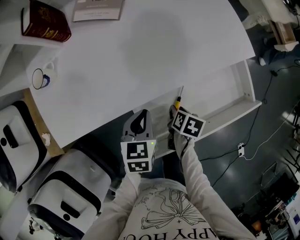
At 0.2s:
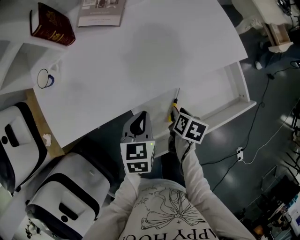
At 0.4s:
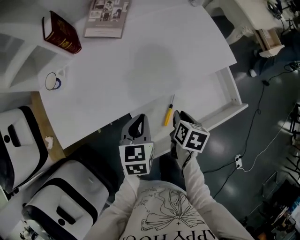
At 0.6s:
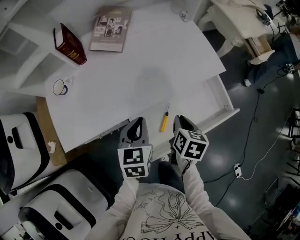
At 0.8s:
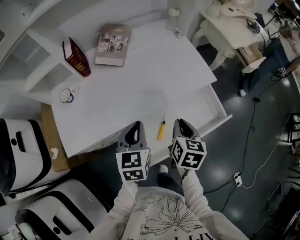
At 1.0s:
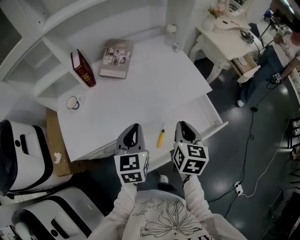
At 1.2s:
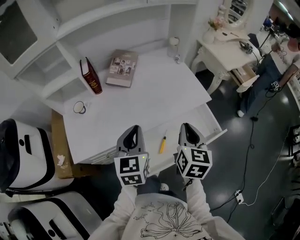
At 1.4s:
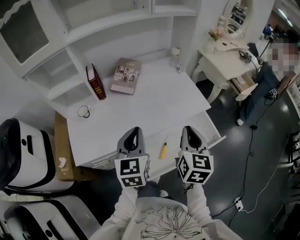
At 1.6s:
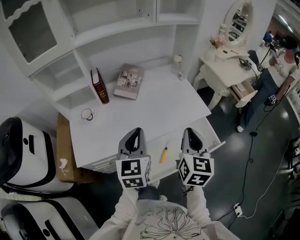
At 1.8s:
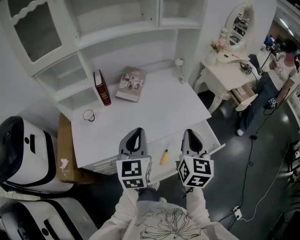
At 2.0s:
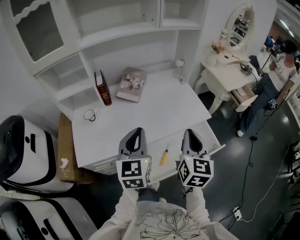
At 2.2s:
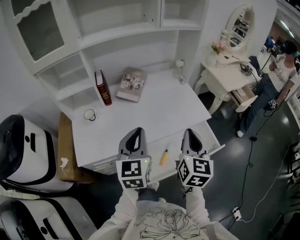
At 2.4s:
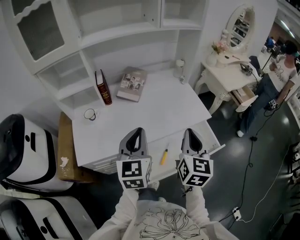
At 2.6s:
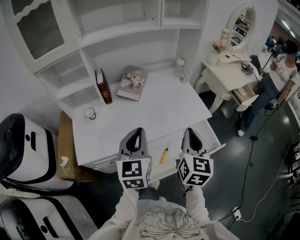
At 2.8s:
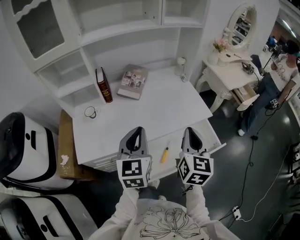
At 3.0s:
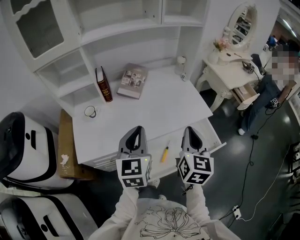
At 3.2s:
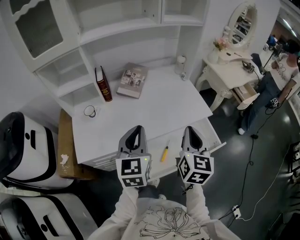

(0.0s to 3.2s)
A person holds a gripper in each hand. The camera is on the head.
0.0s - 1.6s: The grippers both shift upward by approximately 40 cm. The right gripper tilts its fingers approximately 50 degrees upward, and closes its fingers, while the left gripper points its fingers approximately 40 degrees further upward.
1.6s - 3.2s: The grippers move only a little.

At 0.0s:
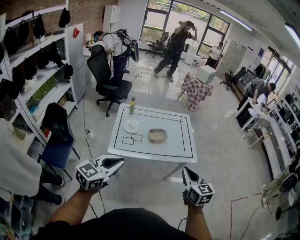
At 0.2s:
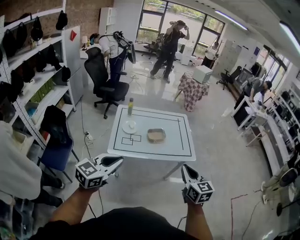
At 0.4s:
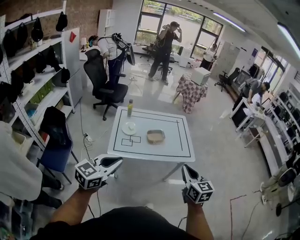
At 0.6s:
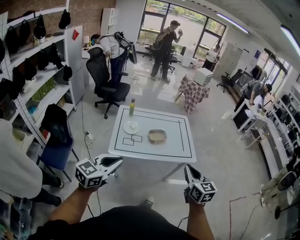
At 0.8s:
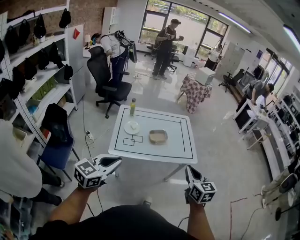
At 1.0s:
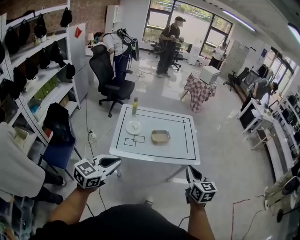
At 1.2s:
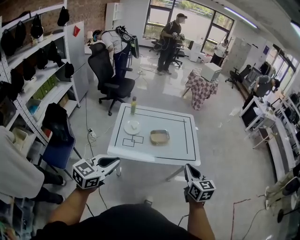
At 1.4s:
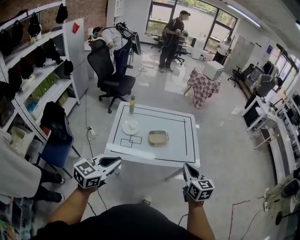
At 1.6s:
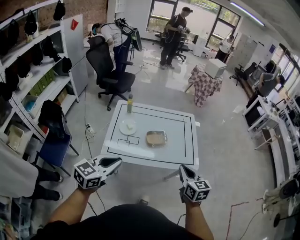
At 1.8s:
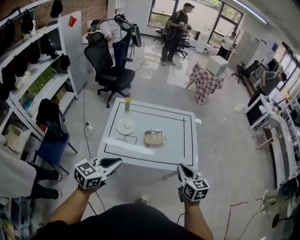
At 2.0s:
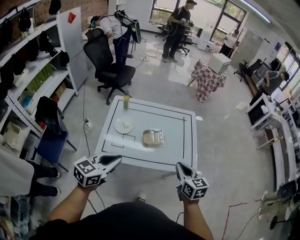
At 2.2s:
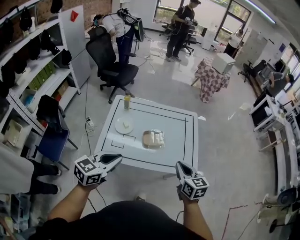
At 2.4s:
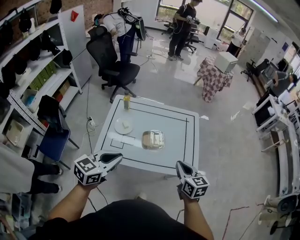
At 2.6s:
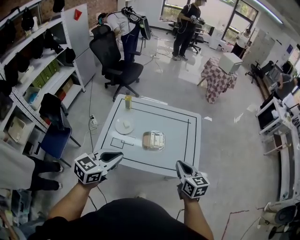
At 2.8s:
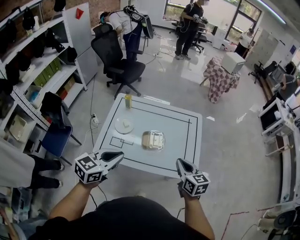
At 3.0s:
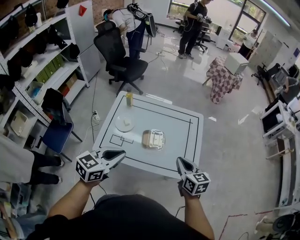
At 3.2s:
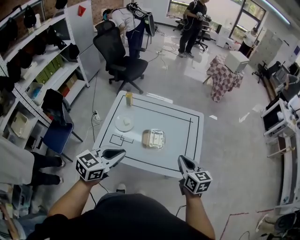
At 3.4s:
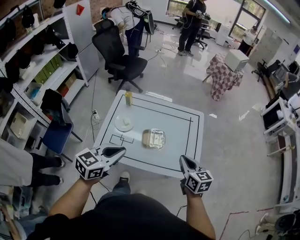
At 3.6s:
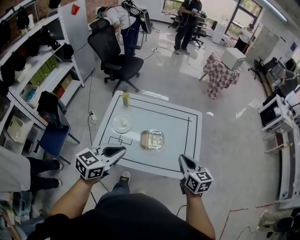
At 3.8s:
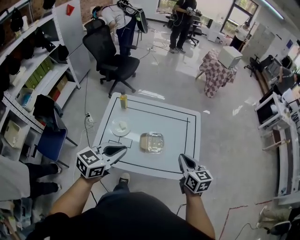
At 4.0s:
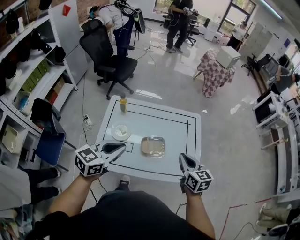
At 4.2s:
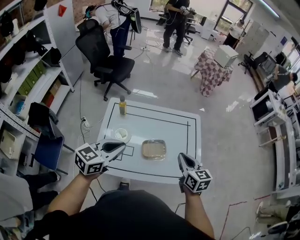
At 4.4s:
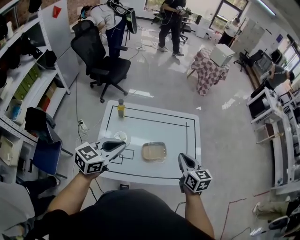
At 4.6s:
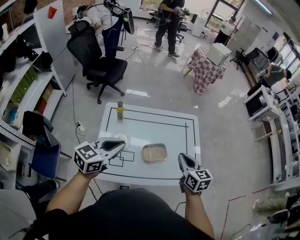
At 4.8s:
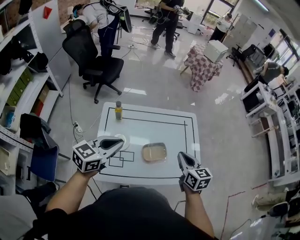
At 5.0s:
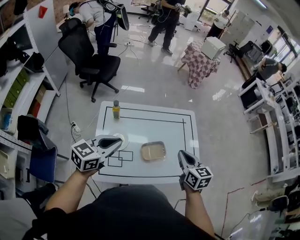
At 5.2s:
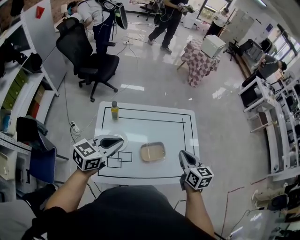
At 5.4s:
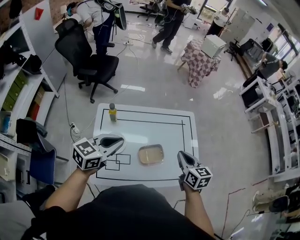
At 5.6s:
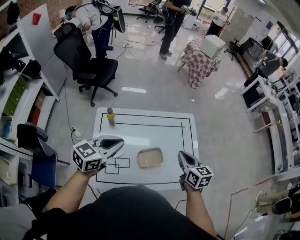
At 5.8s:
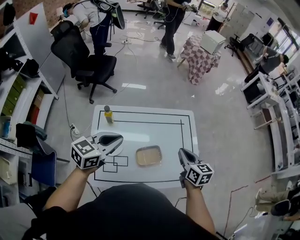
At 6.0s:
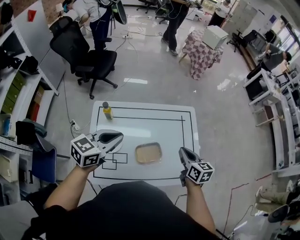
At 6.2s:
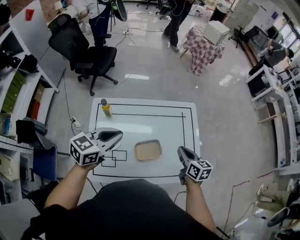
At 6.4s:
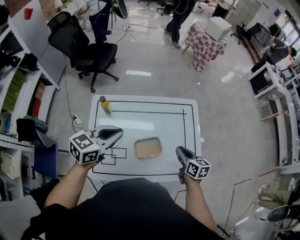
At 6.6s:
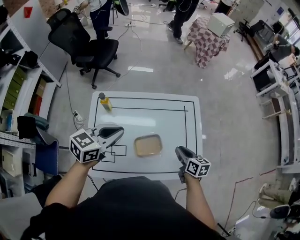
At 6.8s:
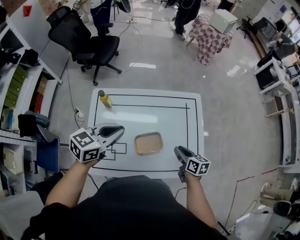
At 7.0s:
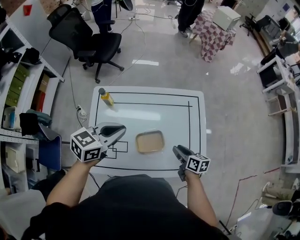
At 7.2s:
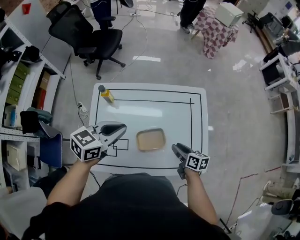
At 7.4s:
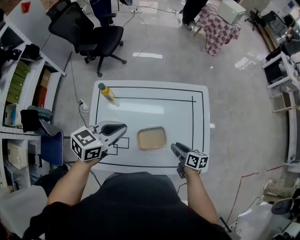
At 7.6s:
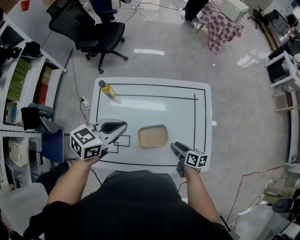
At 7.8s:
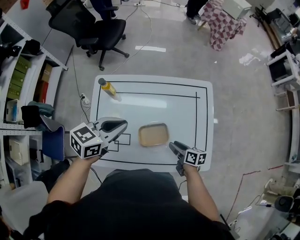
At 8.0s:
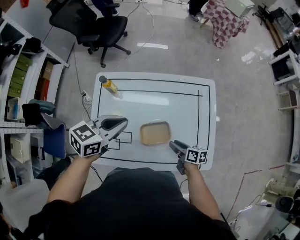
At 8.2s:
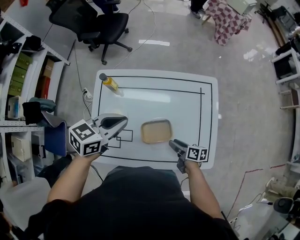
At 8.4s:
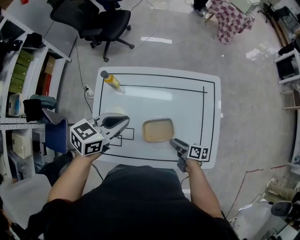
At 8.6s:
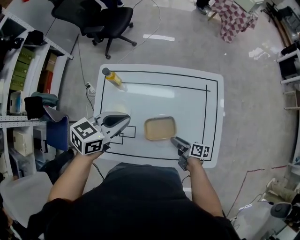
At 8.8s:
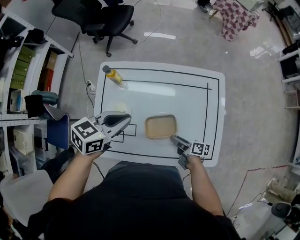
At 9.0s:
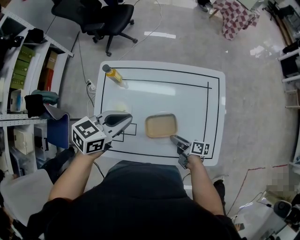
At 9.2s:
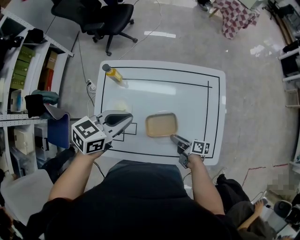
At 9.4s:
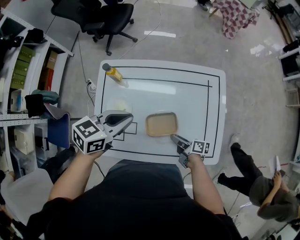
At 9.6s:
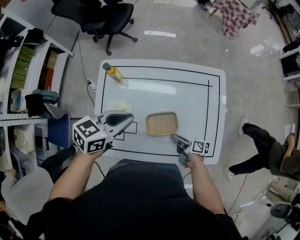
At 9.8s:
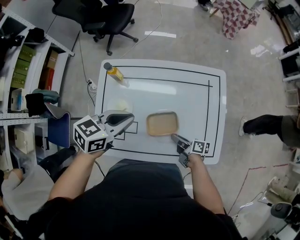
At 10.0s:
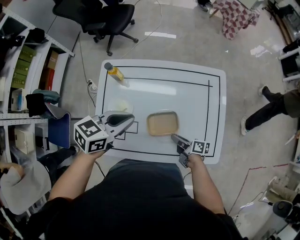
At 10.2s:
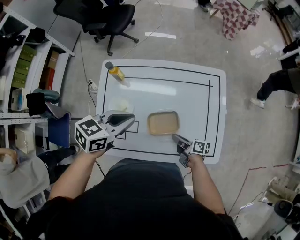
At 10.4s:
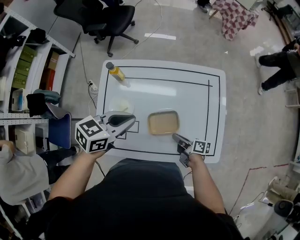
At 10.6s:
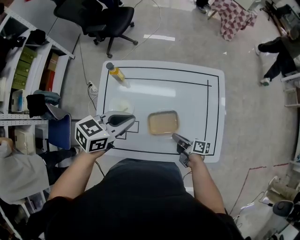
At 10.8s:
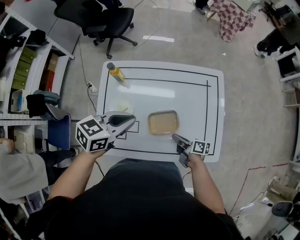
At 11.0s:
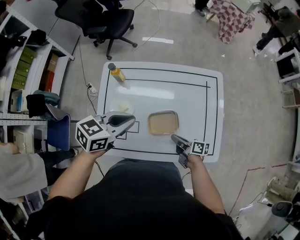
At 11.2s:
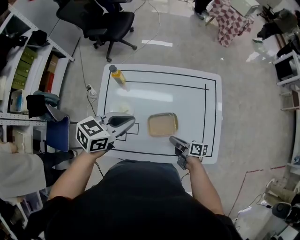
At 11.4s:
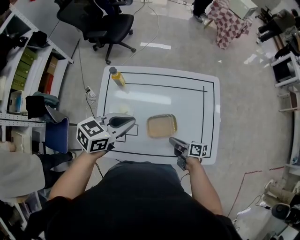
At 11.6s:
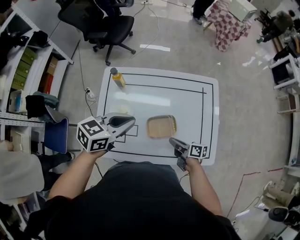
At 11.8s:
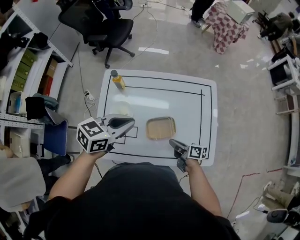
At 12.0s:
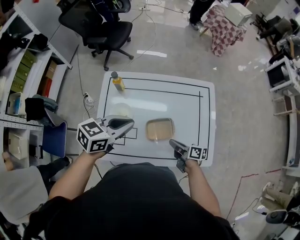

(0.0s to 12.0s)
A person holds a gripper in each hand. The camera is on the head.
0.0s - 1.6s: The left gripper travels forward by some 15 cm, while the right gripper heads forward and downward, covering approximately 20 cm.
1.6s - 3.0s: The left gripper heads forward and to the right, covering approximately 20 cm. The right gripper moves forward, roughly 20 cm.
3.0s - 4.4s: The grippers both shift forward and to the left by some 20 cm.
4.4s - 6.0s: The right gripper heads forward and downward, covering approximately 15 cm; the left gripper shifts roughly 15 cm forward.
6.0s - 7.6s: The left gripper heads downward and to the right, covering about 10 cm, while the right gripper shifts approximately 20 cm downward, changes its angle by roughly 30 degrees, and opens its fingers.
7.6s - 9.0s: The right gripper heads downward, covering some 5 cm, and turns by about 20 degrees.
9.0s - 10.4s: The right gripper closes up.
10.4s - 12.0s: The grippers both shift upward by about 5 cm.

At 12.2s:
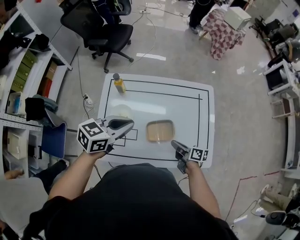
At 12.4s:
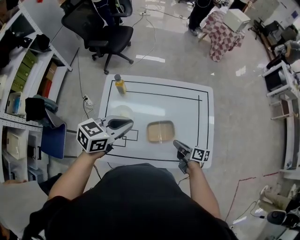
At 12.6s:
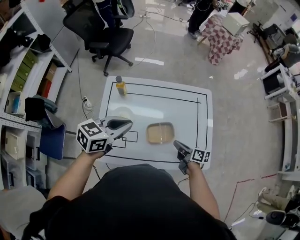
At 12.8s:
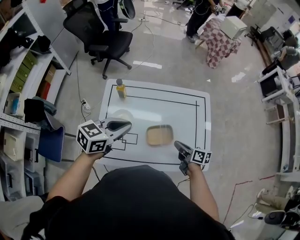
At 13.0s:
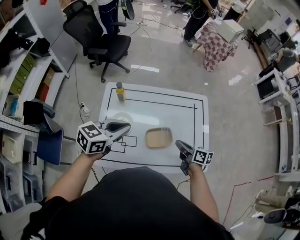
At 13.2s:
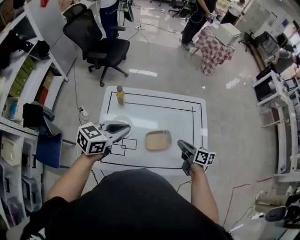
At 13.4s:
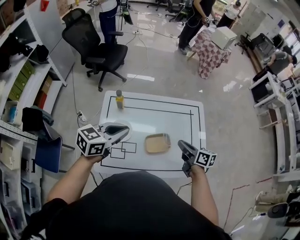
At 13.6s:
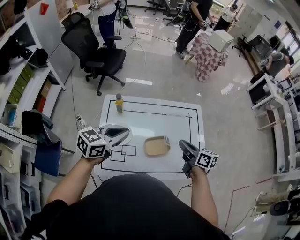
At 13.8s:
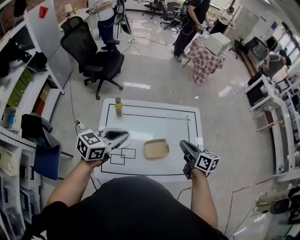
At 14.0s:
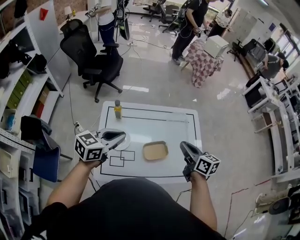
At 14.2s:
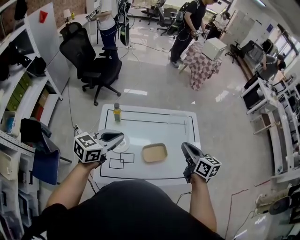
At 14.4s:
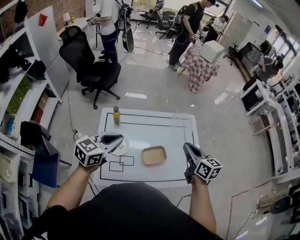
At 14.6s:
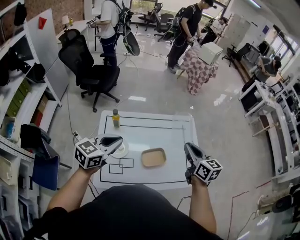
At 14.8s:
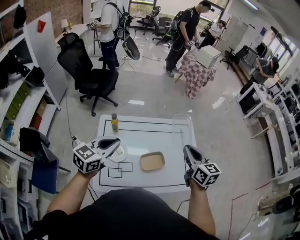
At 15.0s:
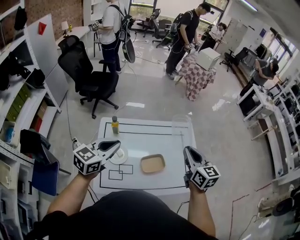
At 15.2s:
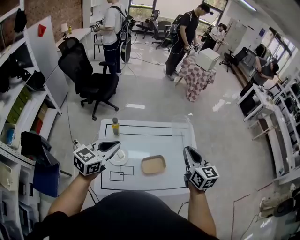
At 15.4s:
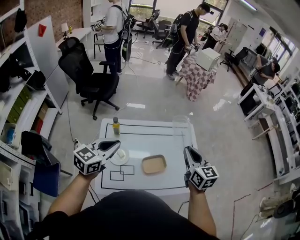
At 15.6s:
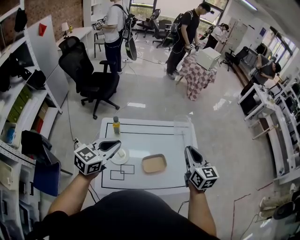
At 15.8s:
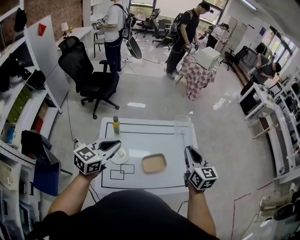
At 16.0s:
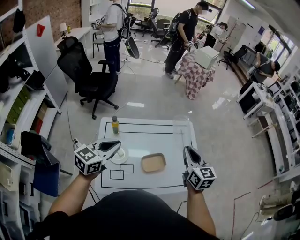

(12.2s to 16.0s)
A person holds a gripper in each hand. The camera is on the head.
12.2s - 13.4s: The right gripper is displaced upward by some 15 cm. Meanwhile the left gripper travels to the left by some 5 cm.
13.4s - 14.8s: The right gripper travels upward by roughly 15 cm, and swivels roughly 40 degrees. The left gripper goes roughly 5 cm upward.
14.8s - 16.0s: The grippers stay close to where they were, moving slightly.

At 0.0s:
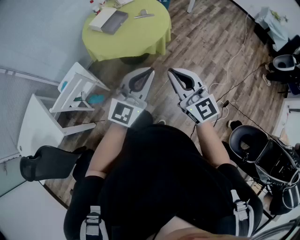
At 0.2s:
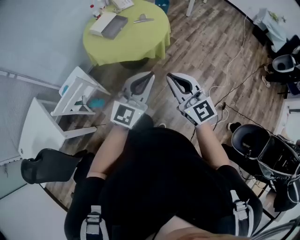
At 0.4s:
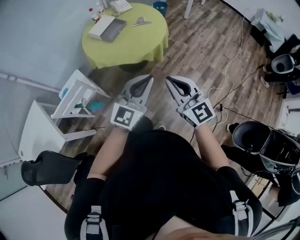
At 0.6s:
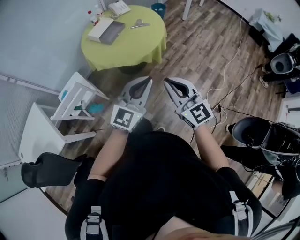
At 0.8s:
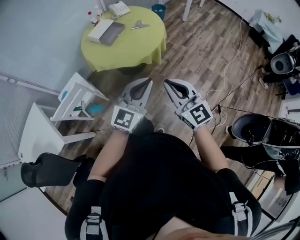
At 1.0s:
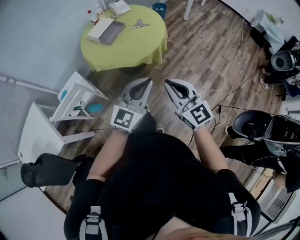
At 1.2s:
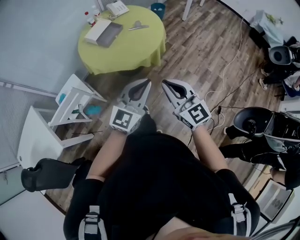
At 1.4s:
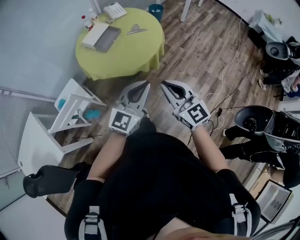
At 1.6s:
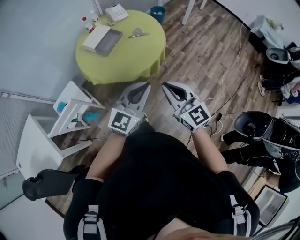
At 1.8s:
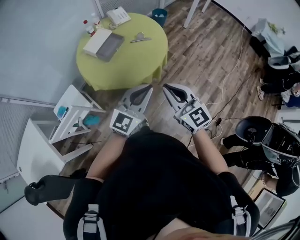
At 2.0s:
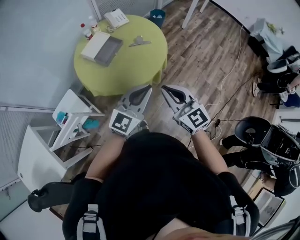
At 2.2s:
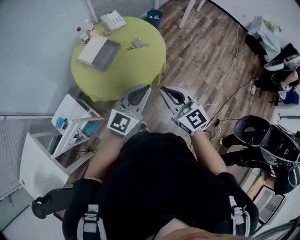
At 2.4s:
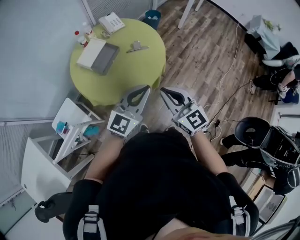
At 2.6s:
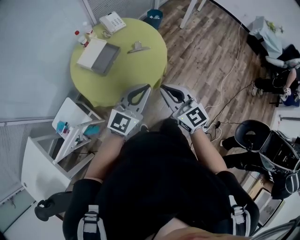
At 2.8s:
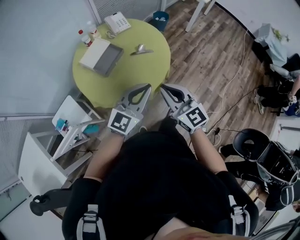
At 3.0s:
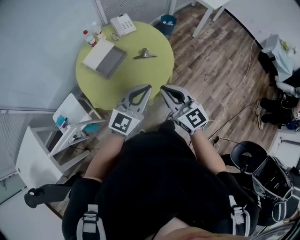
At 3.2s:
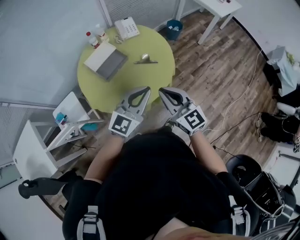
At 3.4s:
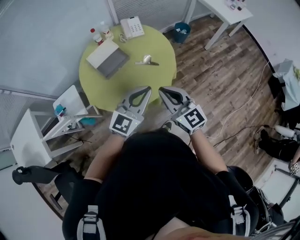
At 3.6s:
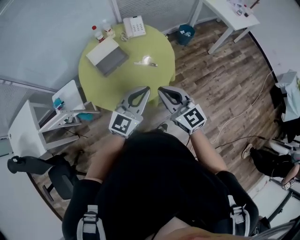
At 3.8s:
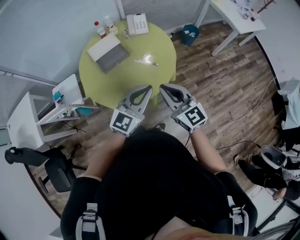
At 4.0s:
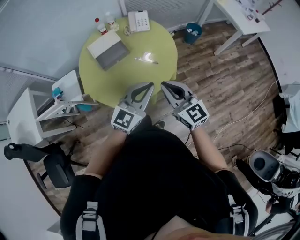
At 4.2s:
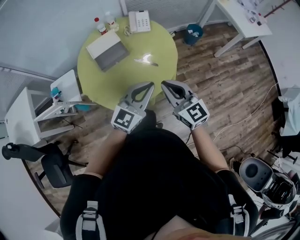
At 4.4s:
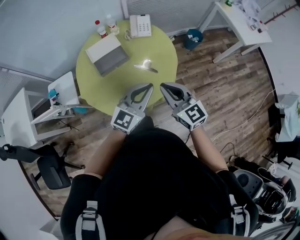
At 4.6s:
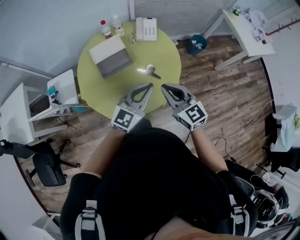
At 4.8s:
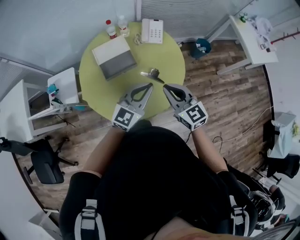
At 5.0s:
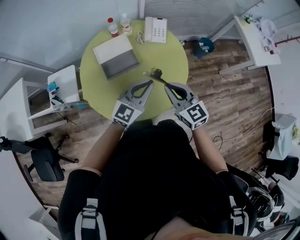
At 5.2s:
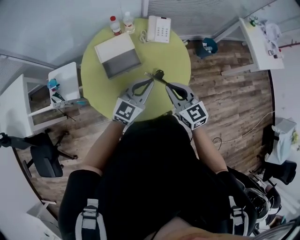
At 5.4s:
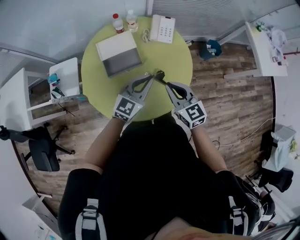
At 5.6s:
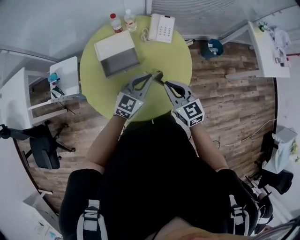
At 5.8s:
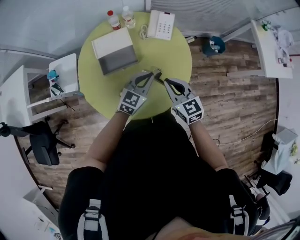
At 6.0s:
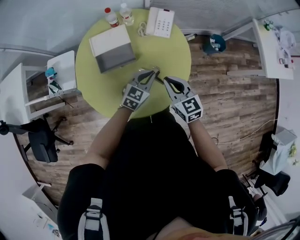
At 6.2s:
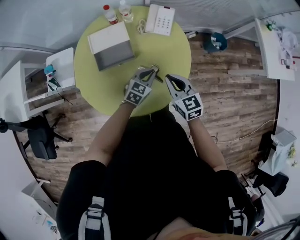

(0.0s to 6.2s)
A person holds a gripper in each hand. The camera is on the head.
0.0s - 1.6s: The grippers both shift forward by some 15 cm.
1.6s - 3.2s: The two grippers go about 25 cm forward.
3.2s - 4.6s: The two grippers go approximately 15 cm forward and to the right. The right gripper rotates approximately 20 degrees.
4.6s - 6.2s: The right gripper moves forward and downward, approximately 20 cm, while the left gripper heads downward and forward, covering approximately 30 cm, and tilts its fingers approximately 30 degrees downward.
